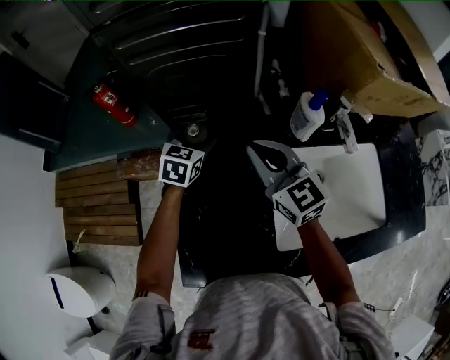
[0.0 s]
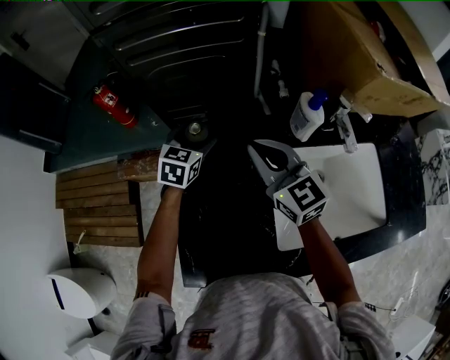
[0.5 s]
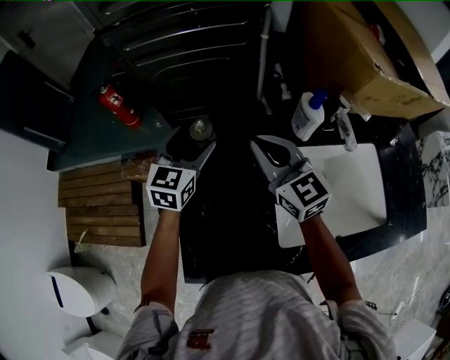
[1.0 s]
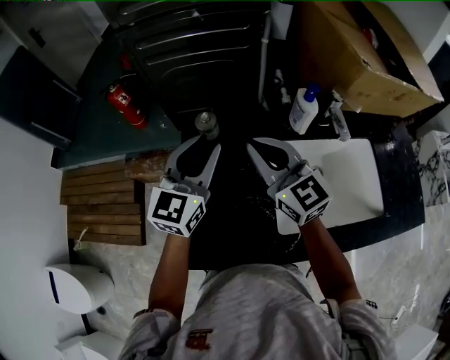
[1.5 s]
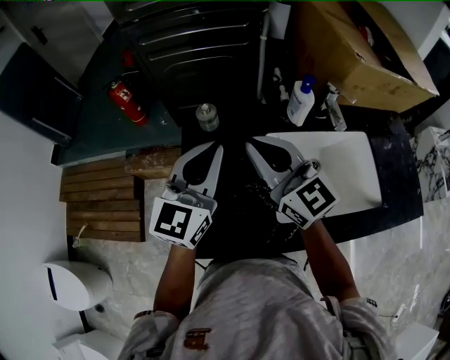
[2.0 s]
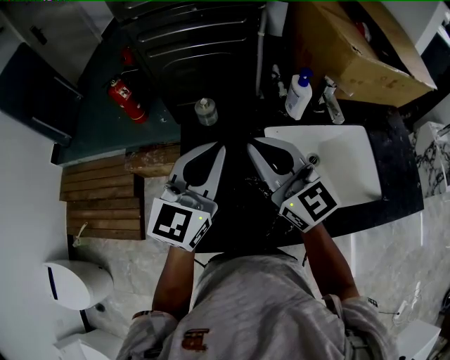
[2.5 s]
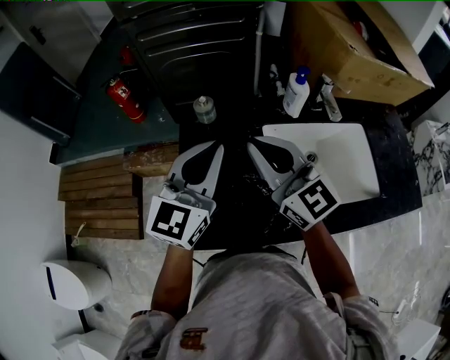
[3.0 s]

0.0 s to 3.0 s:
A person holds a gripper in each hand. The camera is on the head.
0.0 to 1.5 s: The right gripper goes approximately 10 cm backward and upward. The left gripper travels upward and backward by about 25 cm, tilts its fingers some 30 degrees upward, and closes its fingers.
1.5 to 3.0 s: The two grippers go about 10 cm backward. The left gripper closes its fingers.

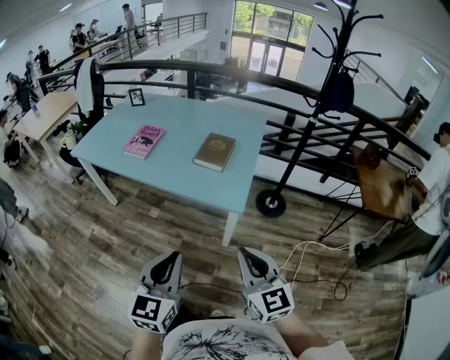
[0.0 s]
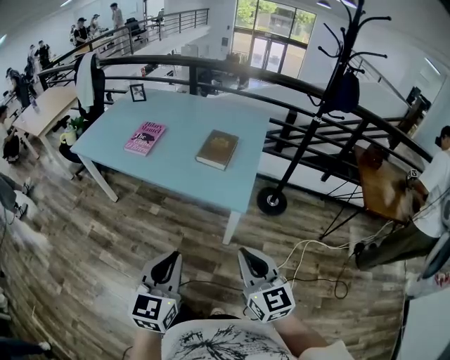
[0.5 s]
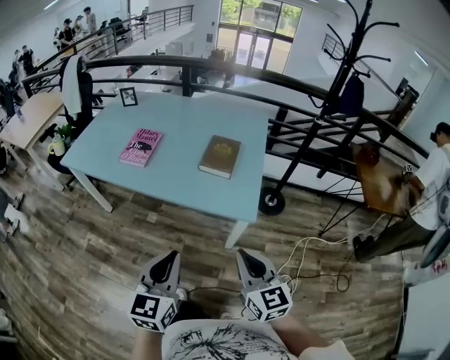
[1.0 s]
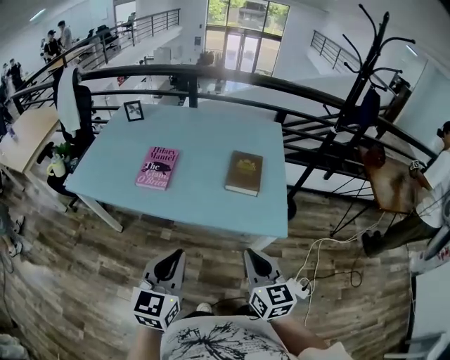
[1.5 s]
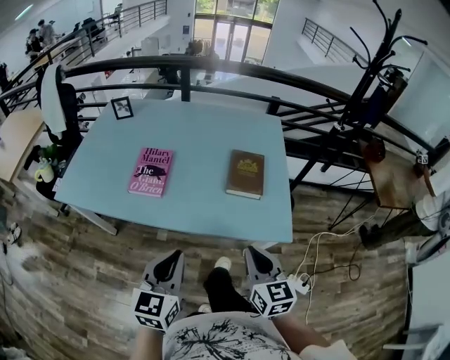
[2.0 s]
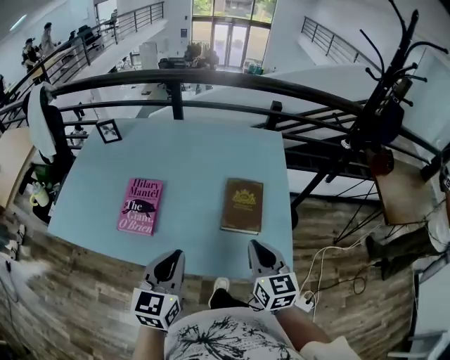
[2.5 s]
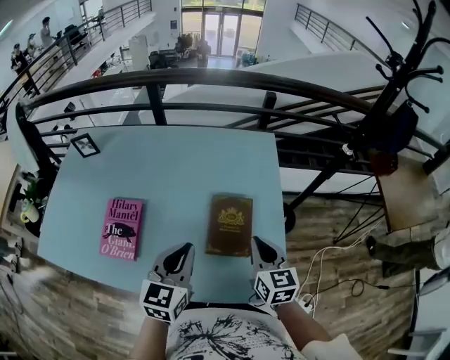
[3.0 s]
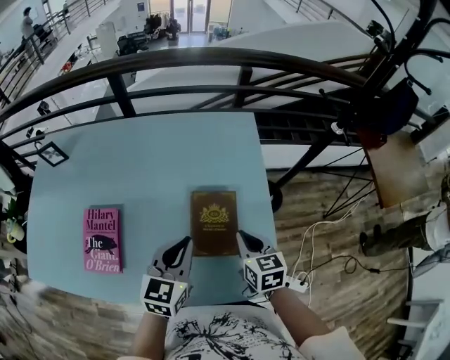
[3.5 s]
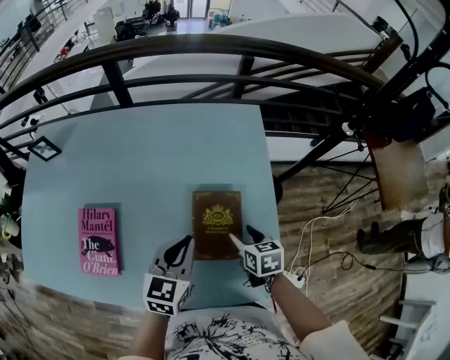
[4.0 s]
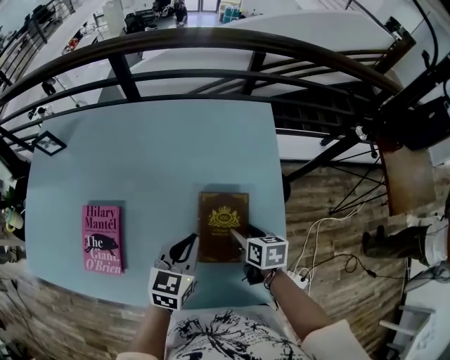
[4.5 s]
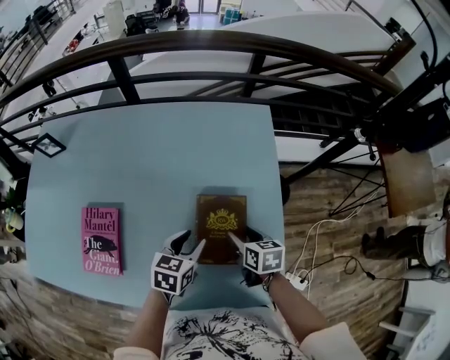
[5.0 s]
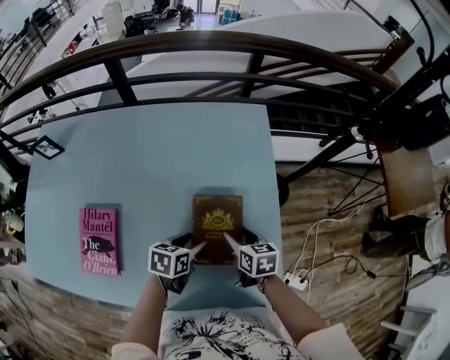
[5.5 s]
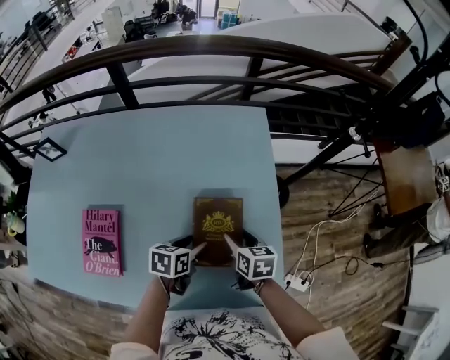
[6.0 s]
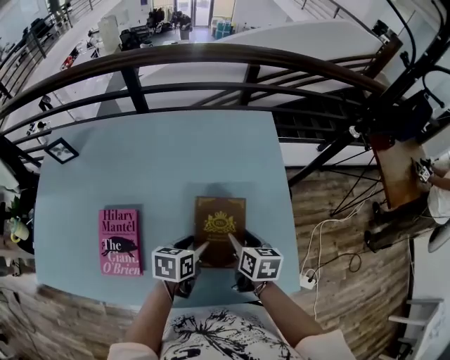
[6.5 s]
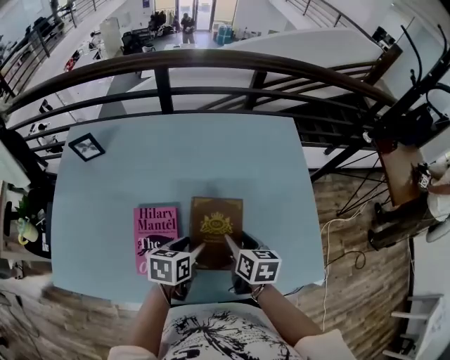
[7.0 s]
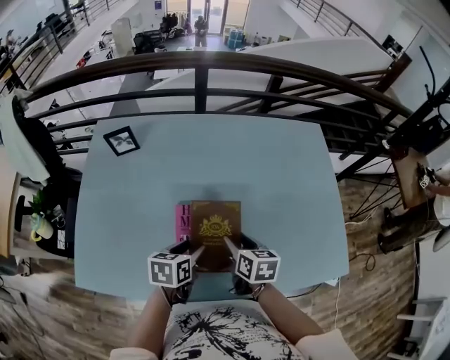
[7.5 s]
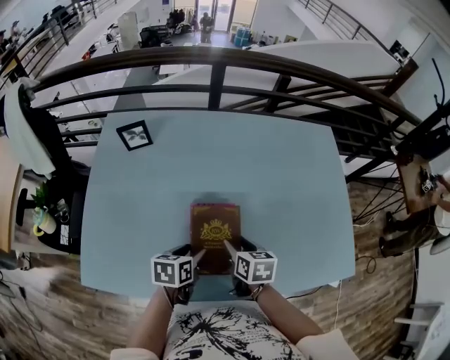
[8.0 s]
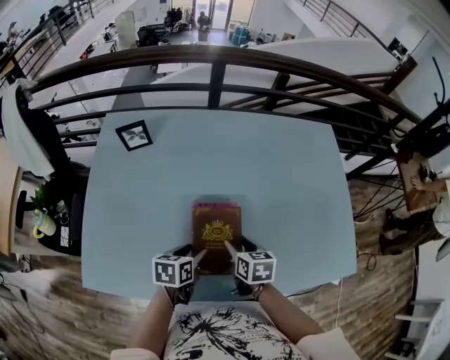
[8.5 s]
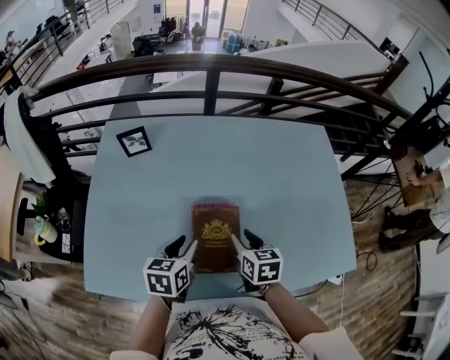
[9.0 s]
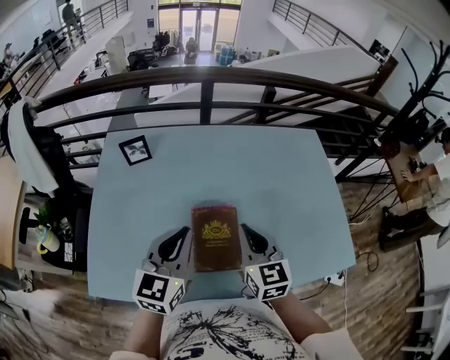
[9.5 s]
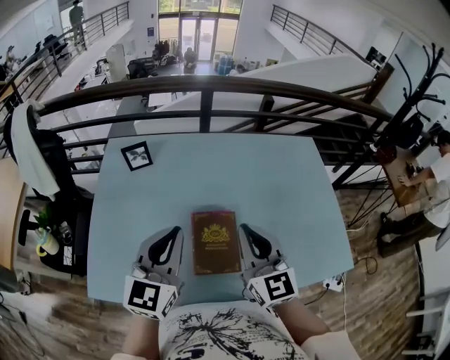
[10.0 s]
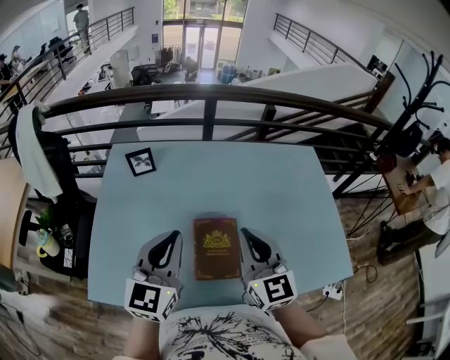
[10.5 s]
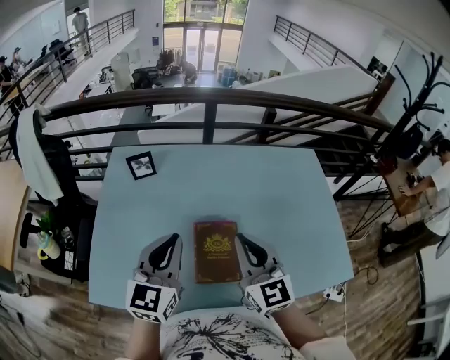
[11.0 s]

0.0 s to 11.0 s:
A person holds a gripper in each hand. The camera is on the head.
0.0 to 2.0 s: The grippers both shift forward and to the left by some 35 cm. The right gripper turns by approximately 20 degrees.
2.0 to 3.5 s: Both grippers travel together forward, some 35 cm. The right gripper swivels approximately 20 degrees.
3.5 to 5.5 s: The left gripper travels downward by some 15 cm, changes its angle by some 40 degrees, and opens up. The right gripper travels downward by roughly 10 cm, and opens.
5.5 to 7.5 s: The right gripper shifts roughly 35 cm to the left; the left gripper goes approximately 40 cm to the left and backward.
7.5 to 9.0 s: The left gripper goes approximately 10 cm to the left.
9.0 to 11.0 s: Both grippers travel together upward, about 20 cm. The left gripper points its fingers about 30 degrees further upward, and closes up. The right gripper tips its fingers upward by approximately 40 degrees, and closes up.

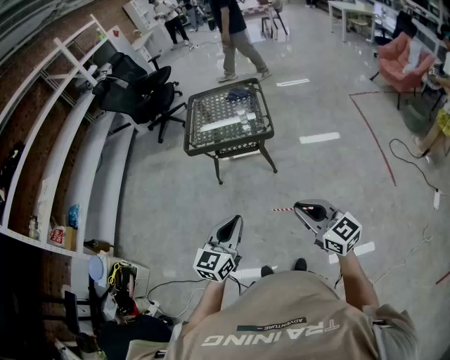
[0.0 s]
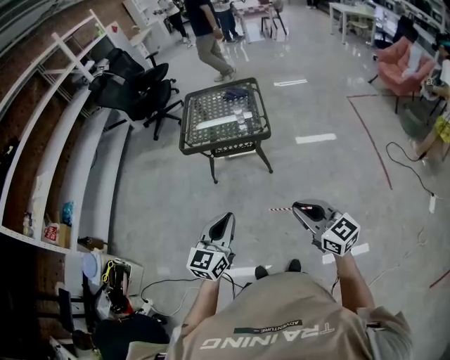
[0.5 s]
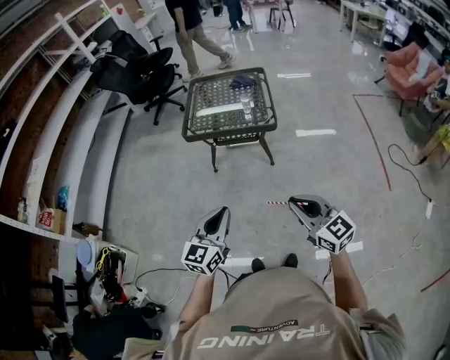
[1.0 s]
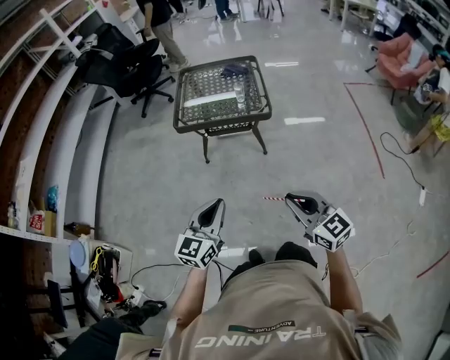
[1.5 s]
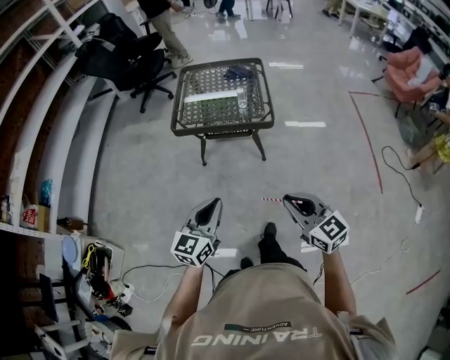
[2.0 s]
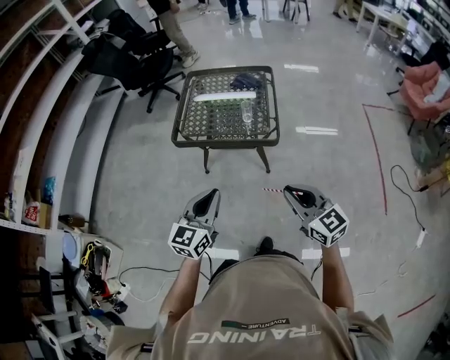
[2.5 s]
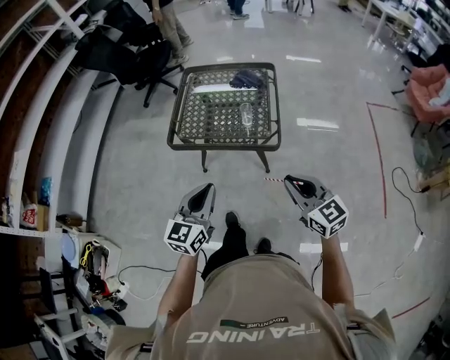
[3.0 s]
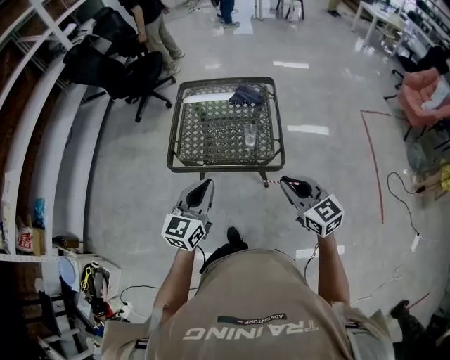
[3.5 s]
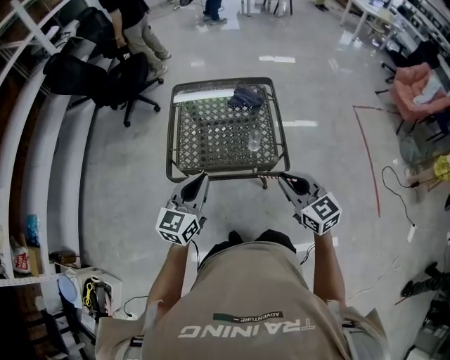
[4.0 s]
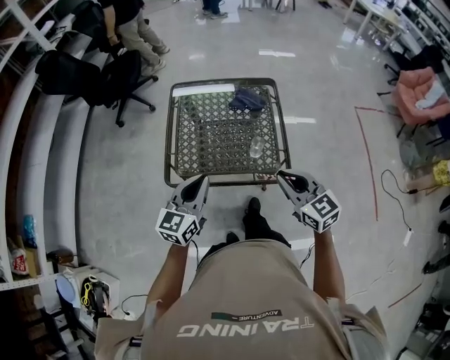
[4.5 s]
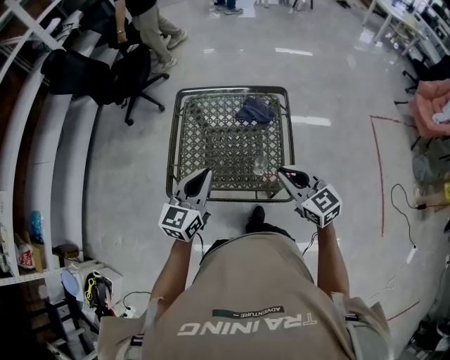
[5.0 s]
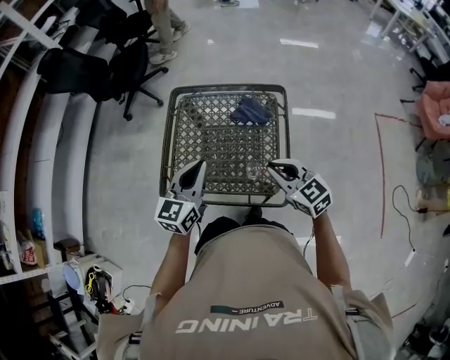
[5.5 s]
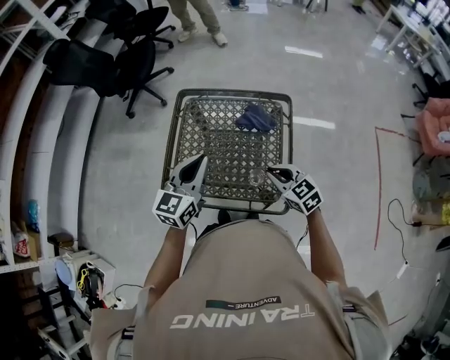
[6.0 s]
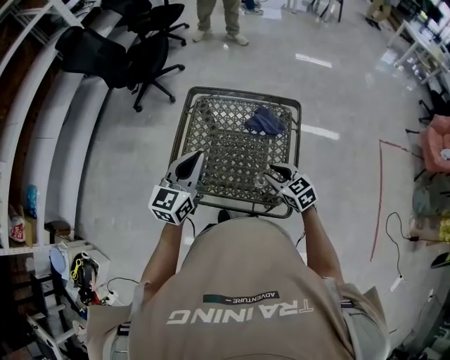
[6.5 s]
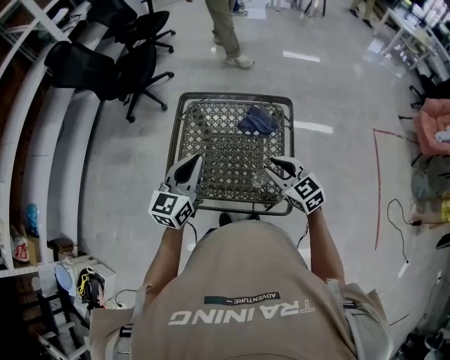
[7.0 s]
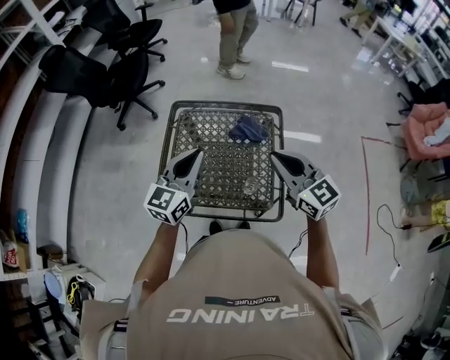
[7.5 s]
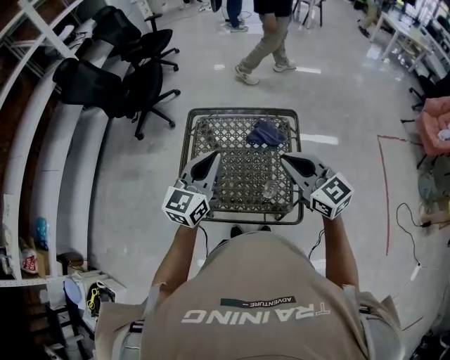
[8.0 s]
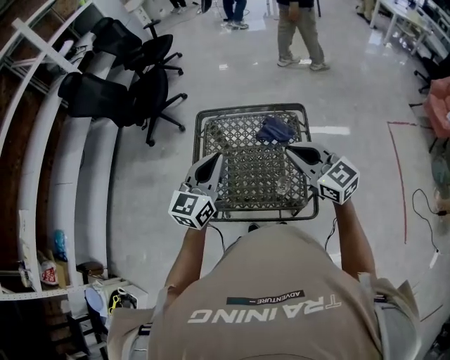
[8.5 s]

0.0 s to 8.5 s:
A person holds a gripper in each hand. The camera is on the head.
0.0 to 2.0 s: The left gripper is displaced forward and to the left by roughly 15 cm. The right gripper moves forward, roughly 10 cm.
2.0 to 4.0 s: Both grippers are carried forward, about 40 cm.
4.0 to 6.5 s: The left gripper moves forward, approximately 20 cm, while the right gripper moves forward and downward, about 30 cm, turns by about 30 degrees, and opens.
6.5 to 8.5 s: The right gripper is displaced upward by some 20 cm, turns by about 30 degrees, and closes its fingers. Meanwhile the left gripper ends up approximately 5 cm from where it was.

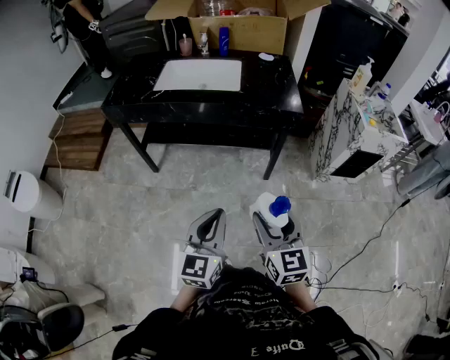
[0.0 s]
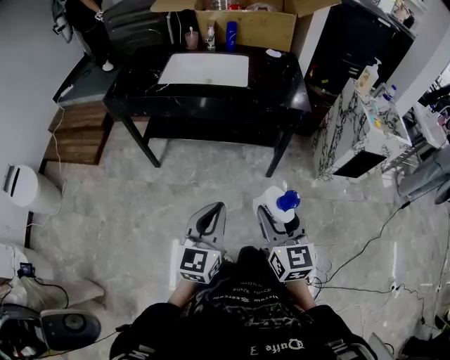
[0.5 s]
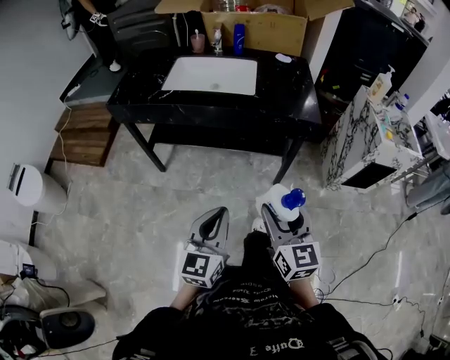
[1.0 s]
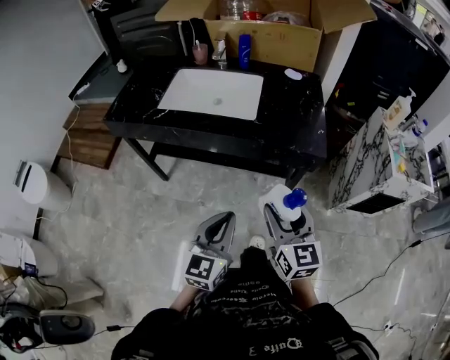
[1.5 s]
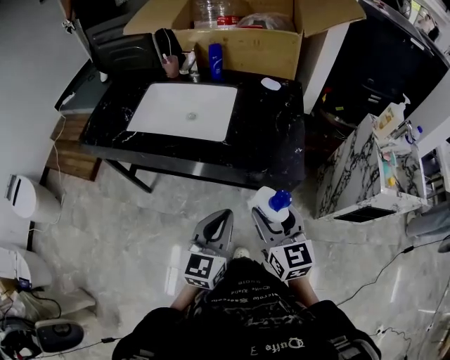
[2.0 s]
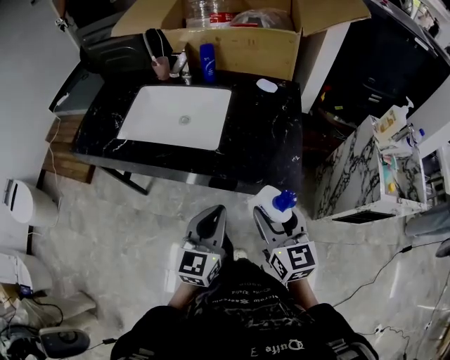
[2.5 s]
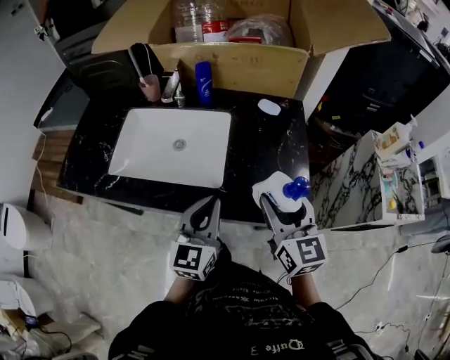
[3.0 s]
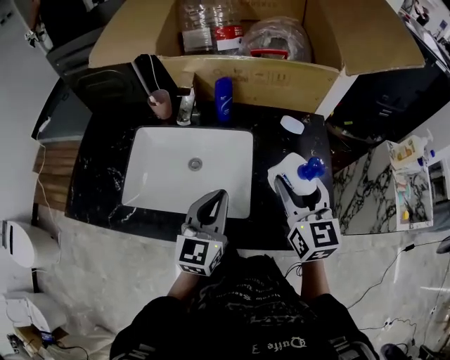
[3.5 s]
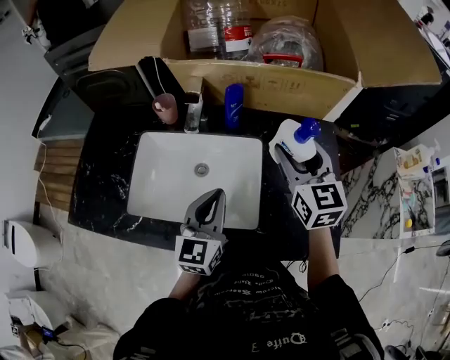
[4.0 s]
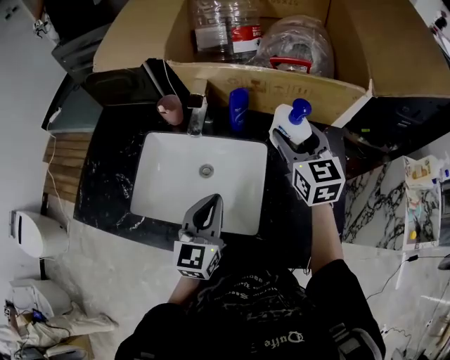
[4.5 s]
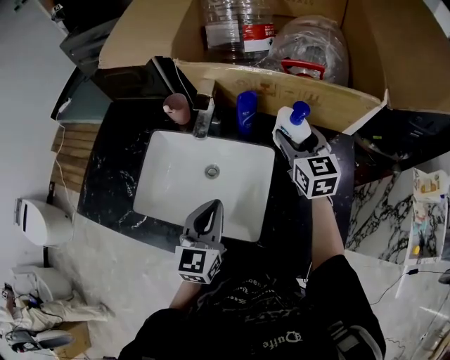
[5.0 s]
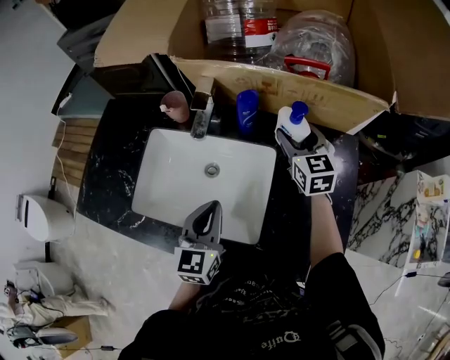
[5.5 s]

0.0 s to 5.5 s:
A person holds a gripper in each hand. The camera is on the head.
0.0 to 2.0 s: The right gripper moves forward, roughly 35 cm. The left gripper shifts about 35 cm forward and to the right.
2.0 to 3.5 s: The grippers both shift forward by approximately 30 cm.
3.5 to 5.5 s: The left gripper is displaced forward by about 5 cm. Meanwhile the right gripper shifts about 25 cm forward.
